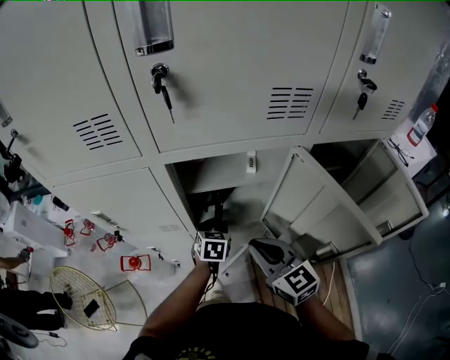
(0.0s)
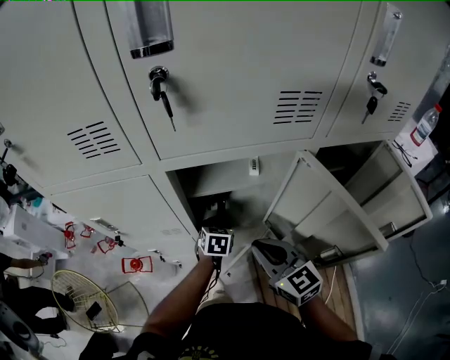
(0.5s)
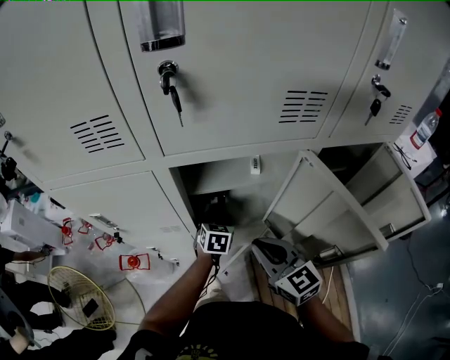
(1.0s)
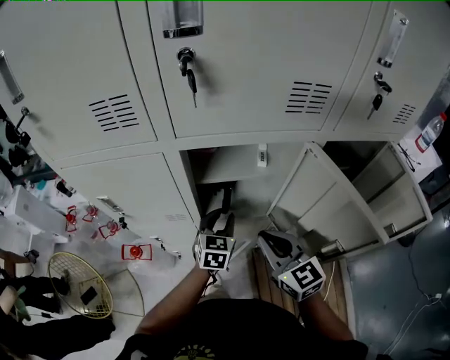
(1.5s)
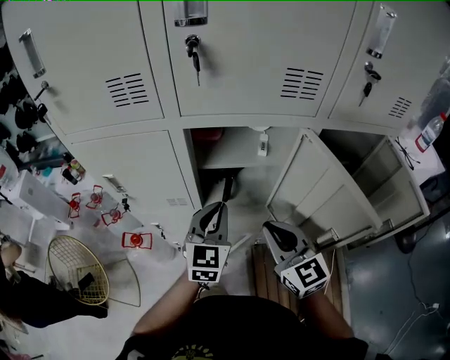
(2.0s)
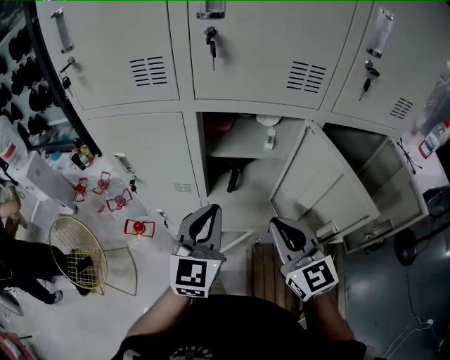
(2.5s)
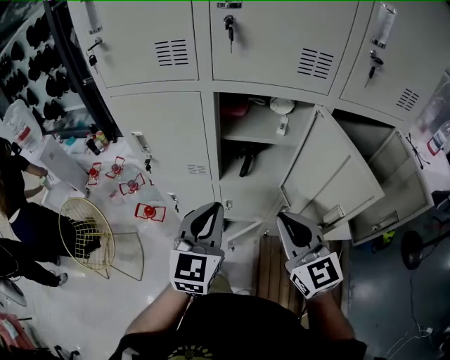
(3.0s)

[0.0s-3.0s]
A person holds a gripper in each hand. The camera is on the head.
0.0s to 1.5s: The left gripper goes roughly 5 cm upward.
1.5s to 3.0s: The left gripper travels backward and upward by roughly 25 cm, and swivels approximately 20 degrees; the right gripper travels backward and upward by approximately 15 cm.

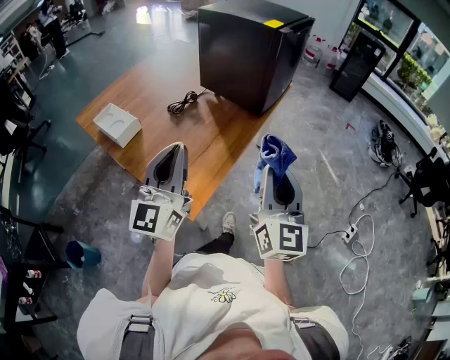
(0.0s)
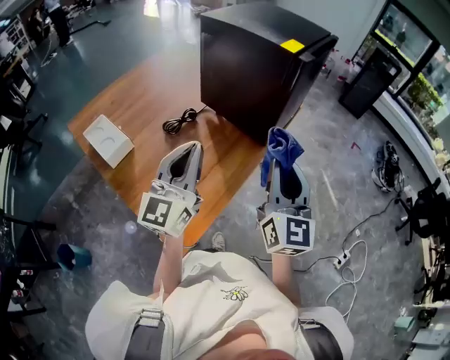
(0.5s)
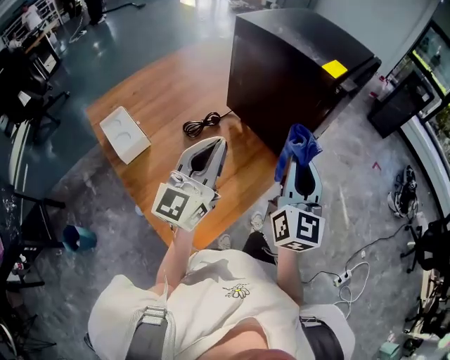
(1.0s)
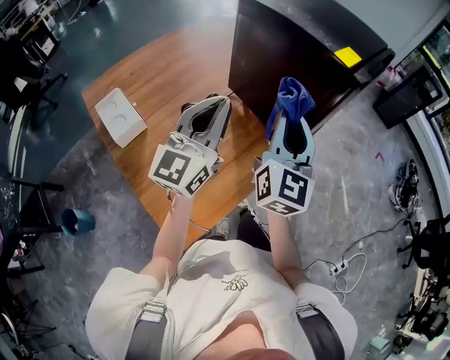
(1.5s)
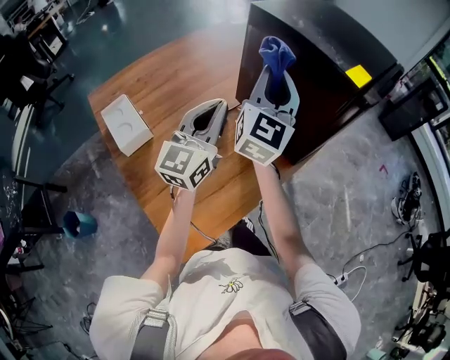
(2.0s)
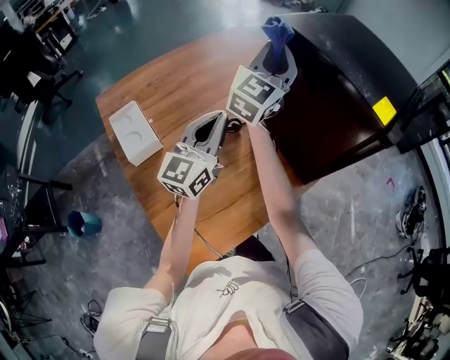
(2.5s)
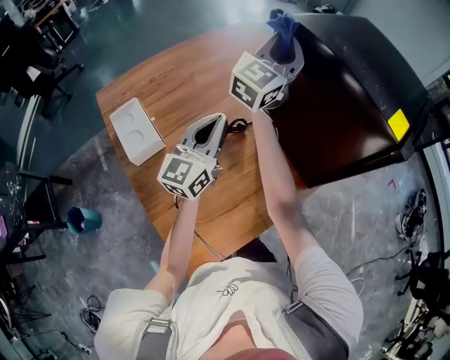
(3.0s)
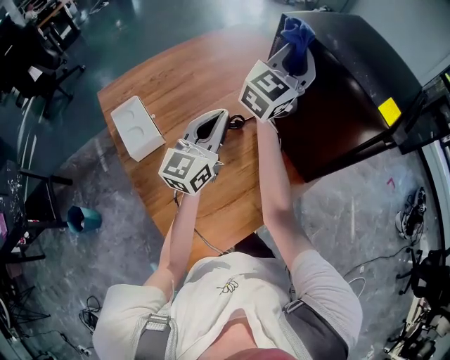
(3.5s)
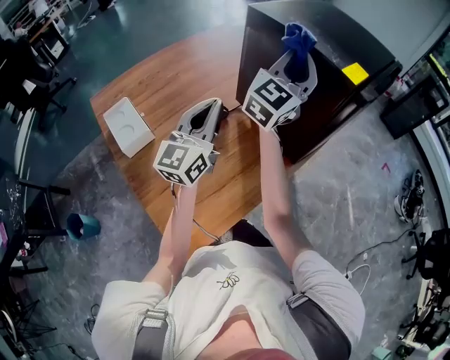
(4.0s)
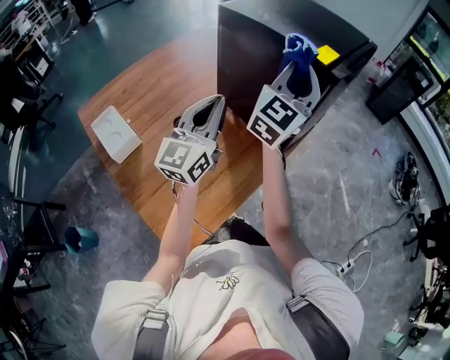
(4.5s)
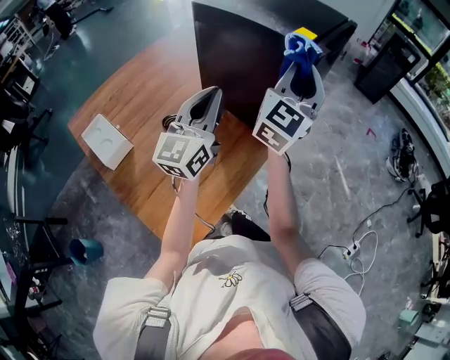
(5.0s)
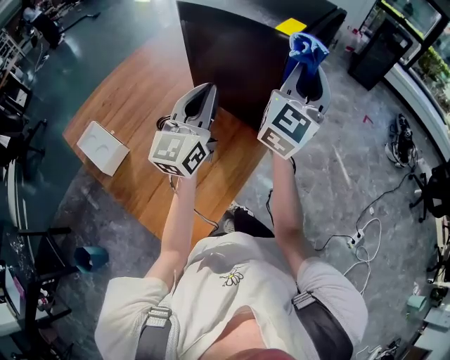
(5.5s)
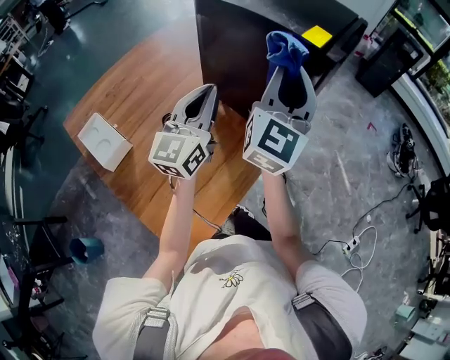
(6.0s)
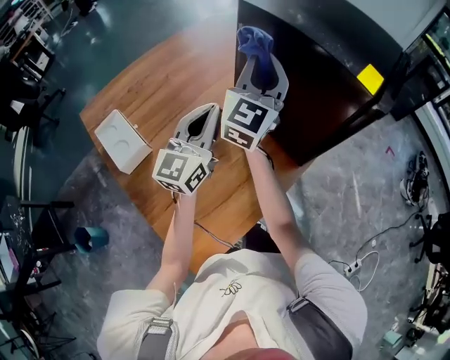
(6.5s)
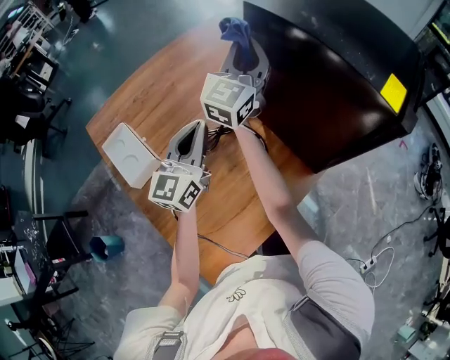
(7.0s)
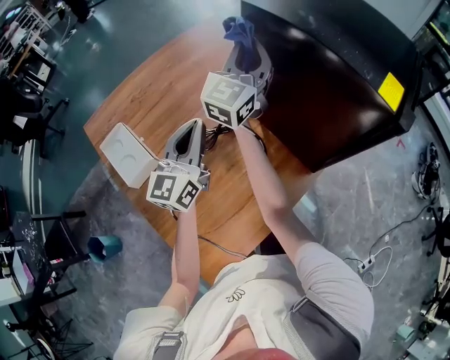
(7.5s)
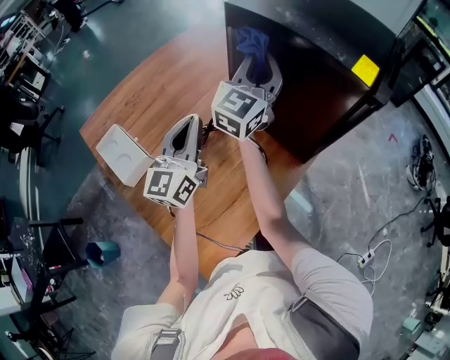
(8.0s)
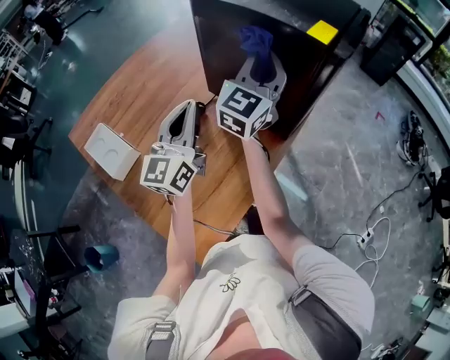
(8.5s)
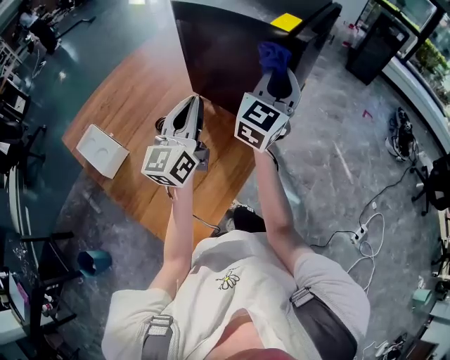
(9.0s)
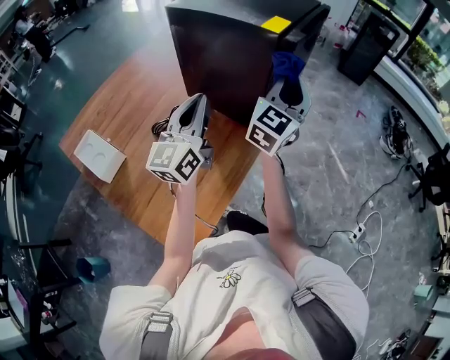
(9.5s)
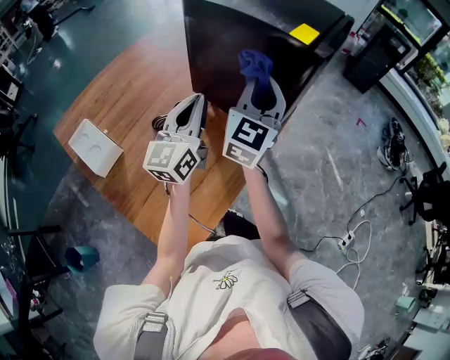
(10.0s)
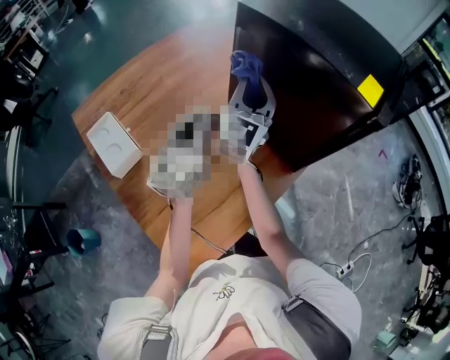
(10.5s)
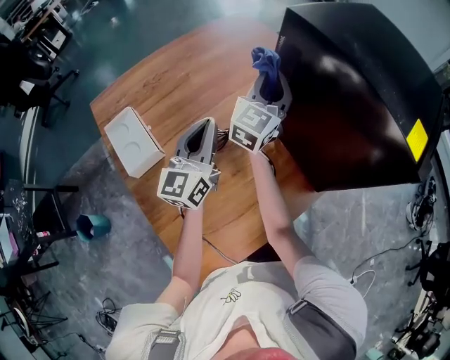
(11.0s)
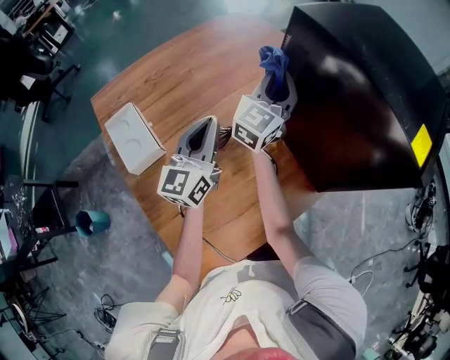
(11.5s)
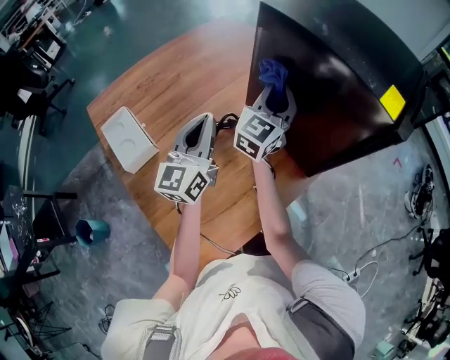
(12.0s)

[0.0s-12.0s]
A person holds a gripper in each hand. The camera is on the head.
0.0s to 2.0s: The grippers both shift forward by about 40 cm.
2.0s to 4.0s: The left gripper moves some 10 cm to the left and comes back. The right gripper heads forward, covering about 5 cm, reaches roughly 10 cm to the left, then returns, and changes its angle by roughly 20 degrees.
4.0s to 6.0s: The right gripper heads to the right and backward, covering some 10 cm, while the left gripper goes about 5 cm to the right.
6.0s to 8.0s: The right gripper is displaced to the left and forward by some 20 cm. Meanwhile the left gripper moves to the left, some 10 cm.
8.0s to 10.0s: The left gripper travels to the right by some 10 cm. The right gripper shifts about 15 cm to the right and backward.
10.0s to 12.0s: The left gripper travels to the left by approximately 15 cm; the right gripper goes about 20 cm to the left, forward and downward.

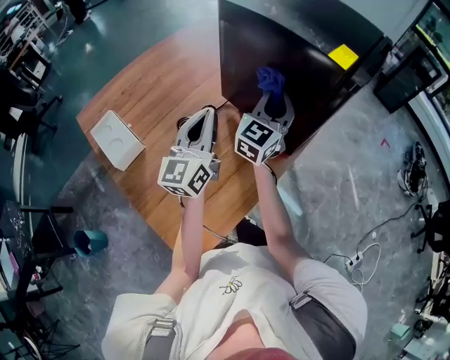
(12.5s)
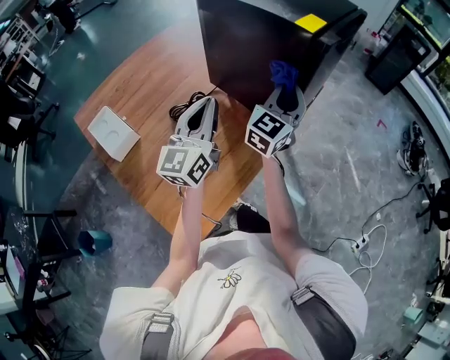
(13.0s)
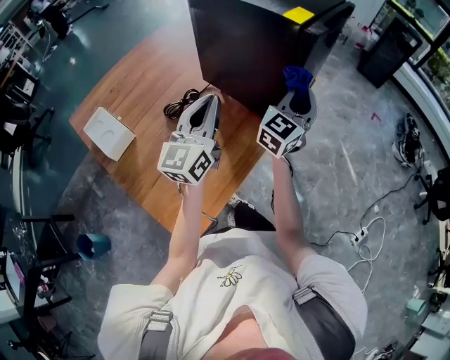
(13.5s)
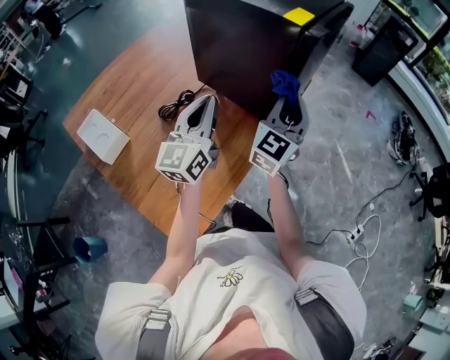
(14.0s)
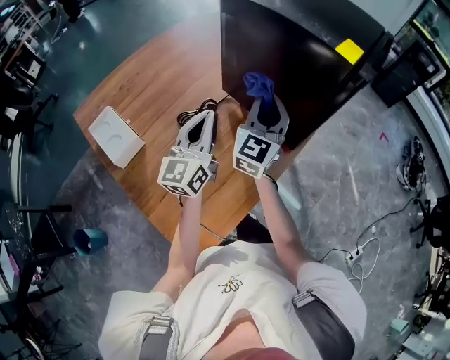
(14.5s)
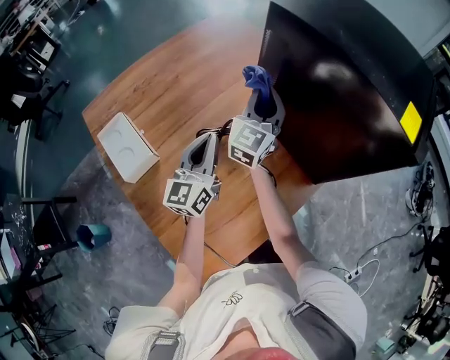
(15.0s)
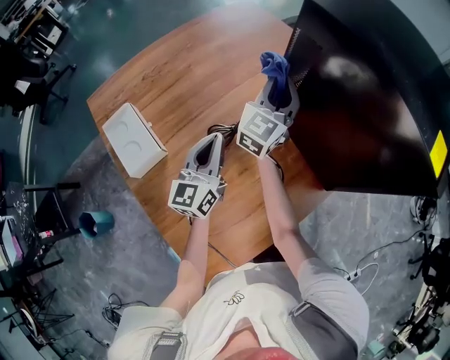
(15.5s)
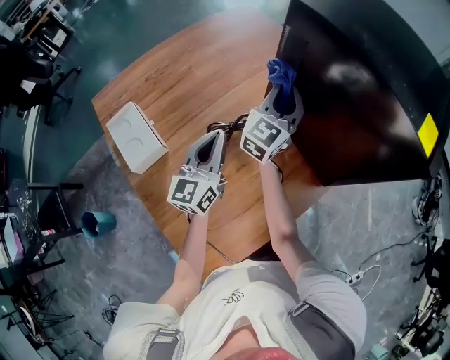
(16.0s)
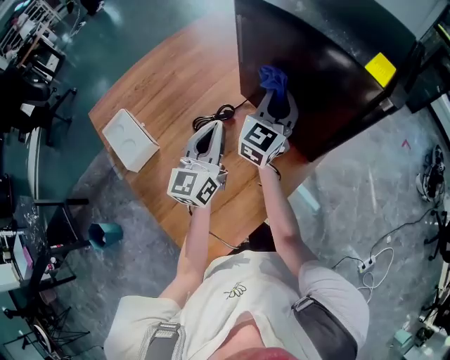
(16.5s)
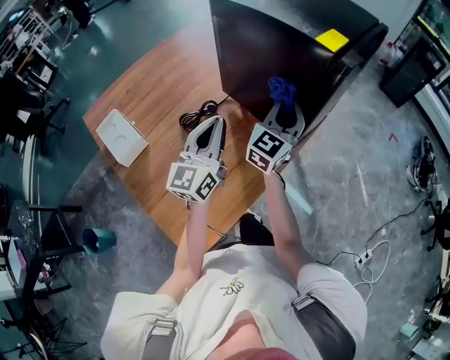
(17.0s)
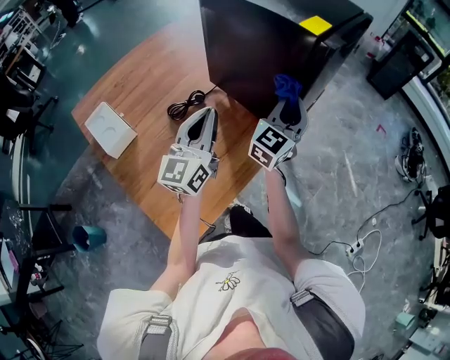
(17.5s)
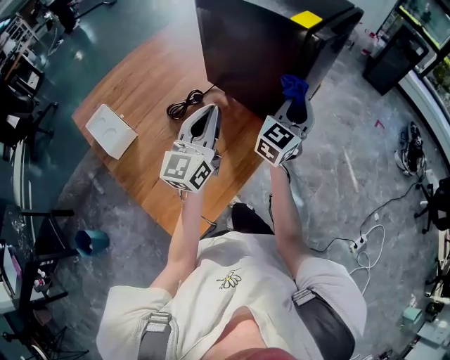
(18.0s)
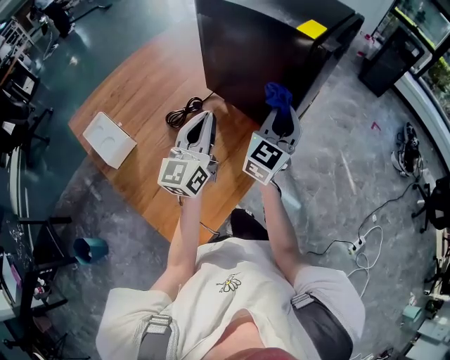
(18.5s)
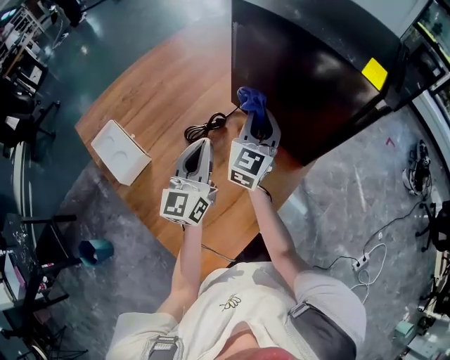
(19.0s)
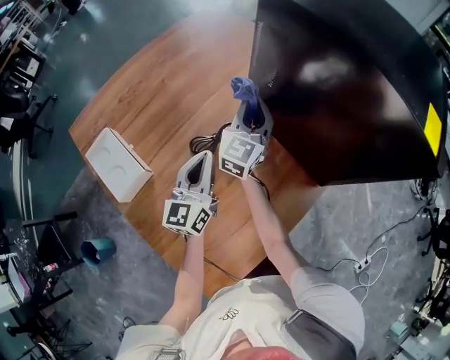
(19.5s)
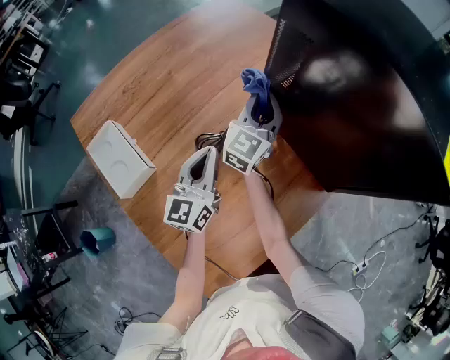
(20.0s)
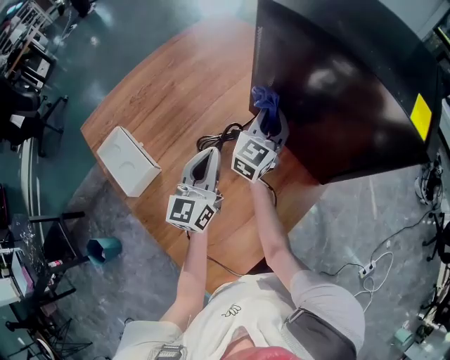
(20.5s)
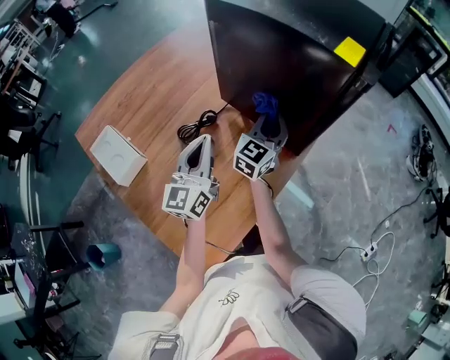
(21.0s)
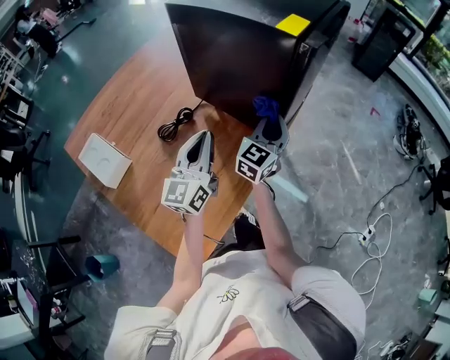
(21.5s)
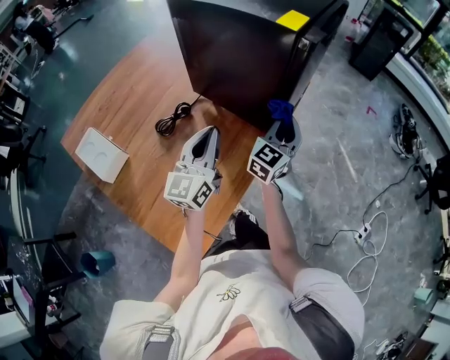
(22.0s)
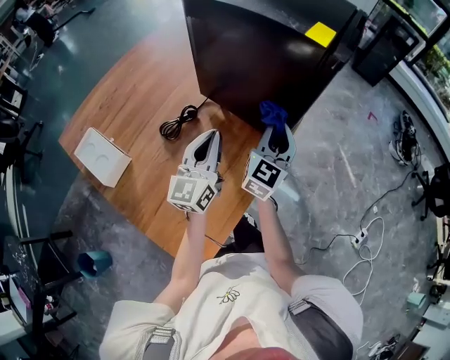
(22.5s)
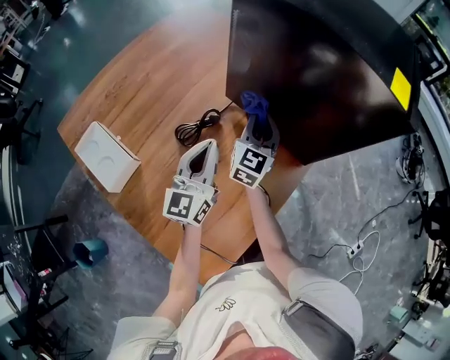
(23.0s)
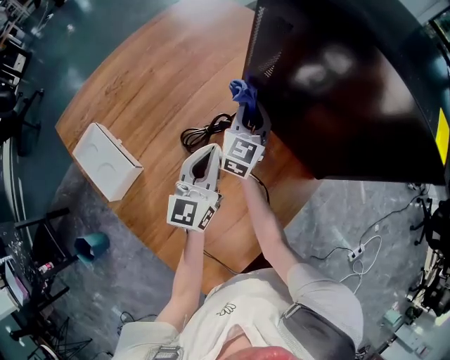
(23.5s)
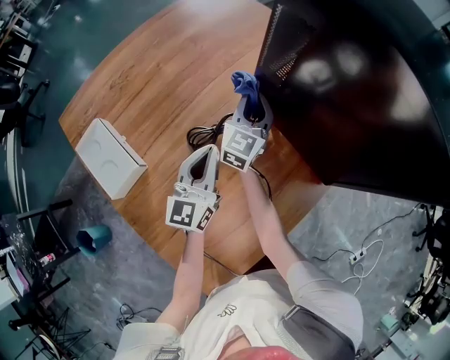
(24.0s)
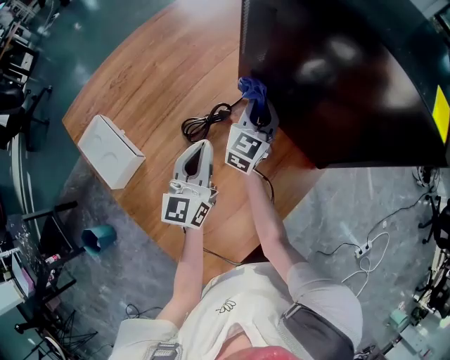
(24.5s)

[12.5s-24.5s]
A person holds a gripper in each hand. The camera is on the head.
12.5s to 14.5s: The right gripper travels to the right and back again, approximately 15 cm each way. The left gripper goes to the right and returns, about 10 cm each way.
14.5s to 16.5s: The left gripper reaches about 10 cm to the left, then returns, while the right gripper travels forward by roughly 10 cm.
16.5s to 18.5s: The right gripper goes some 20 cm to the right and backward, while the left gripper goes some 10 cm to the right.
18.5s to 20.5s: The left gripper goes roughly 20 cm to the left, downward and forward. The right gripper travels to the left, forward and downward by approximately 30 cm.
20.5s to 22.5s: The left gripper moves to the right, some 15 cm; the right gripper moves to the right and backward, about 25 cm.
22.5s to 24.5s: The right gripper shifts some 30 cm to the left, forward and downward. Meanwhile the left gripper travels to the left and downward by some 15 cm.
